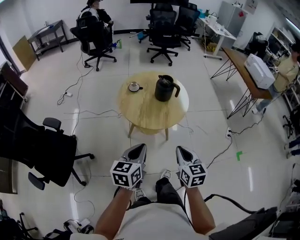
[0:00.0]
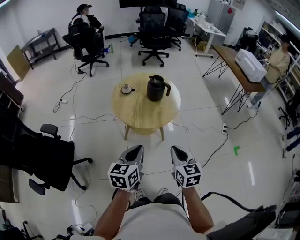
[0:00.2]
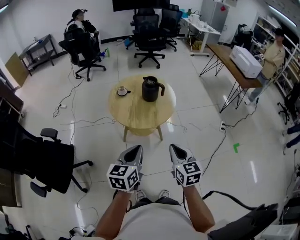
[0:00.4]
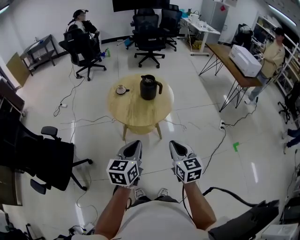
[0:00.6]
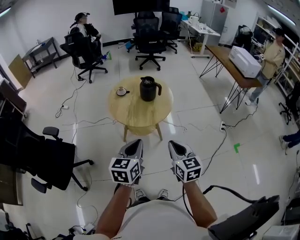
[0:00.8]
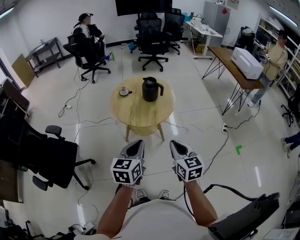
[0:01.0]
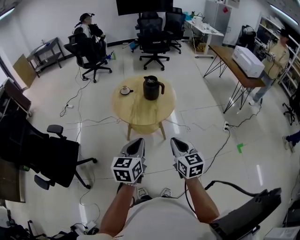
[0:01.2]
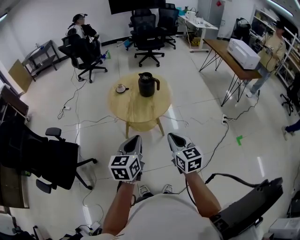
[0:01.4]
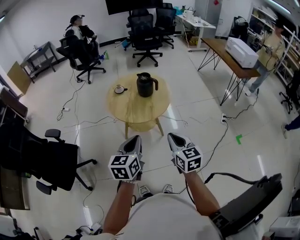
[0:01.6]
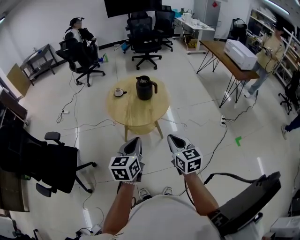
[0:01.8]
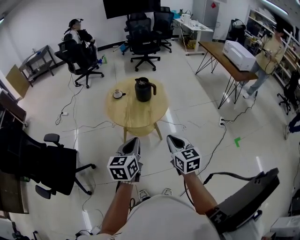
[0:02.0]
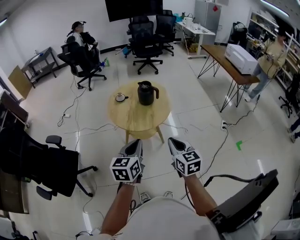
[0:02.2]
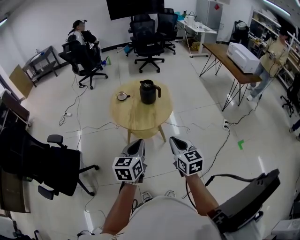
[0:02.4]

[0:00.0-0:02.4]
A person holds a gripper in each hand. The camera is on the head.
0:00.0 to 0:01.2: The right gripper heads upward, backward and to the right, covering about 10 cm. Meanwhile the left gripper shifts some 10 cm to the right, backward and upward.
0:01.2 to 0:02.4: The grippers stay close to where they were, moving slightly.

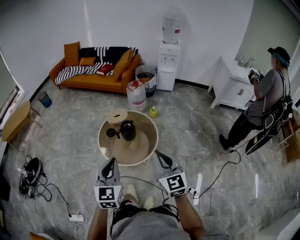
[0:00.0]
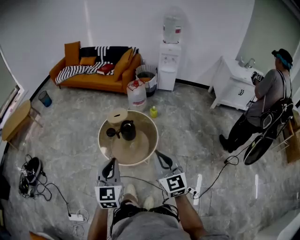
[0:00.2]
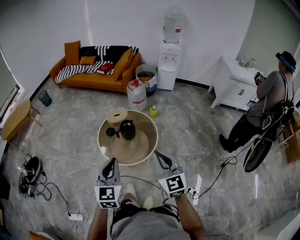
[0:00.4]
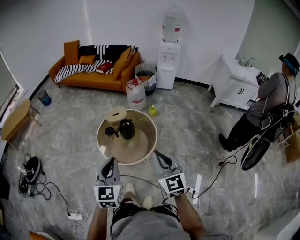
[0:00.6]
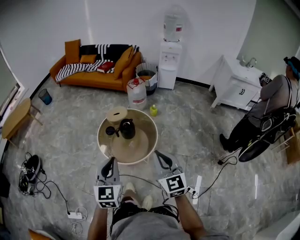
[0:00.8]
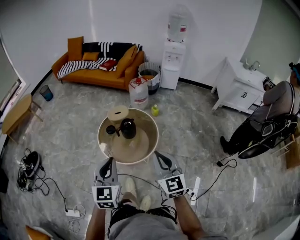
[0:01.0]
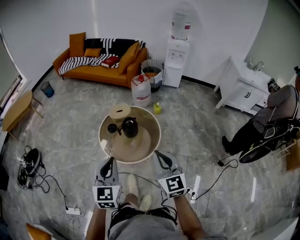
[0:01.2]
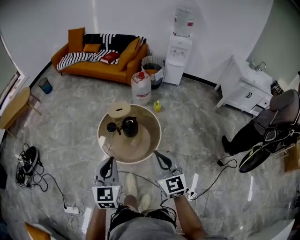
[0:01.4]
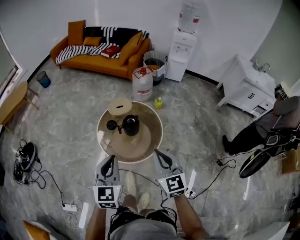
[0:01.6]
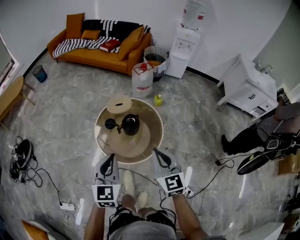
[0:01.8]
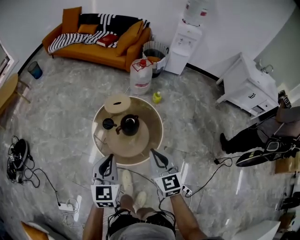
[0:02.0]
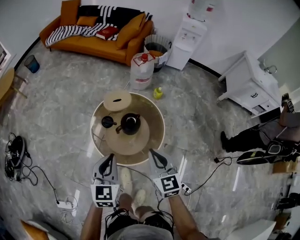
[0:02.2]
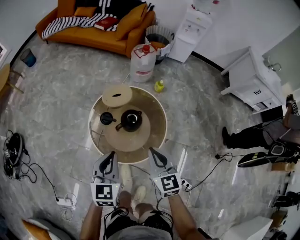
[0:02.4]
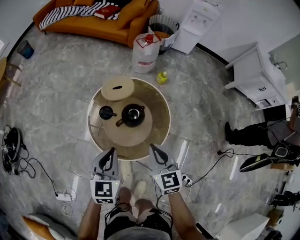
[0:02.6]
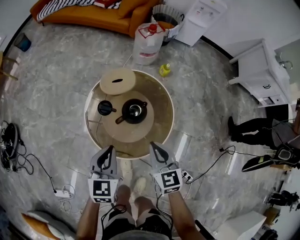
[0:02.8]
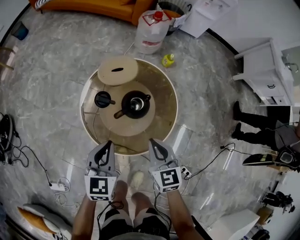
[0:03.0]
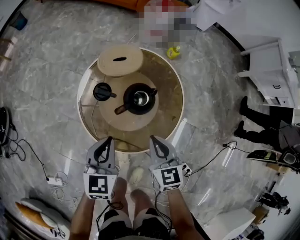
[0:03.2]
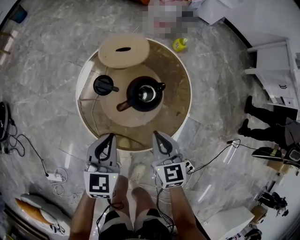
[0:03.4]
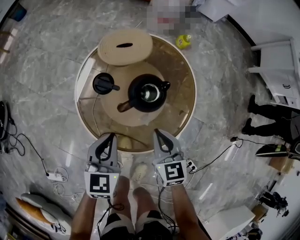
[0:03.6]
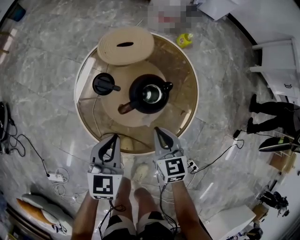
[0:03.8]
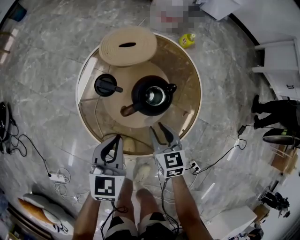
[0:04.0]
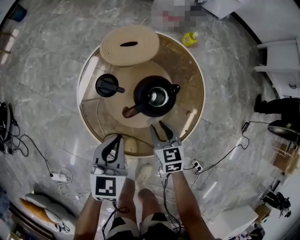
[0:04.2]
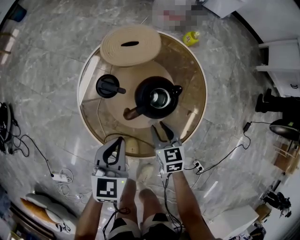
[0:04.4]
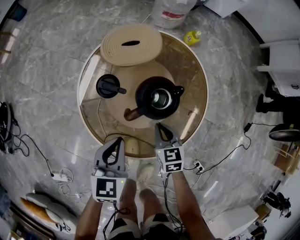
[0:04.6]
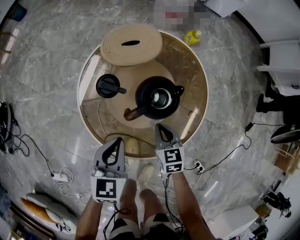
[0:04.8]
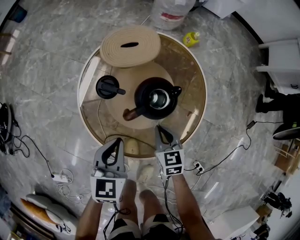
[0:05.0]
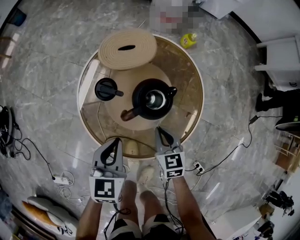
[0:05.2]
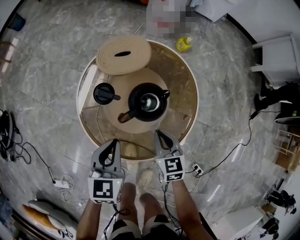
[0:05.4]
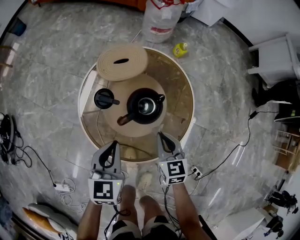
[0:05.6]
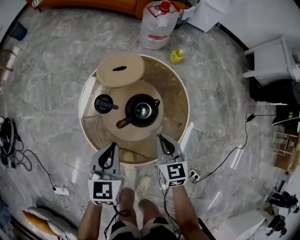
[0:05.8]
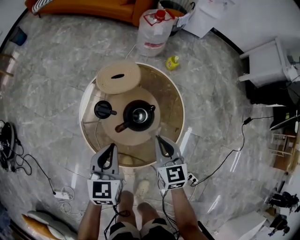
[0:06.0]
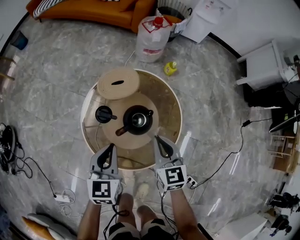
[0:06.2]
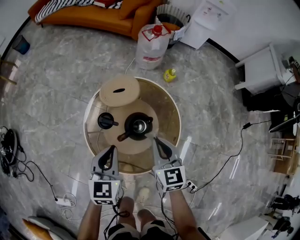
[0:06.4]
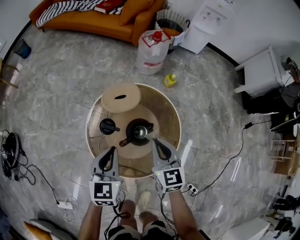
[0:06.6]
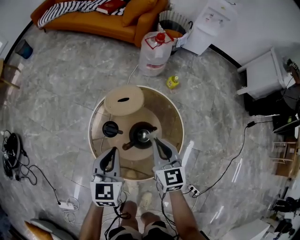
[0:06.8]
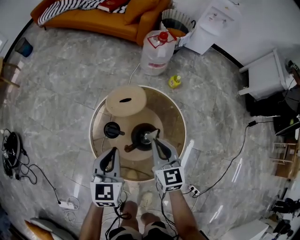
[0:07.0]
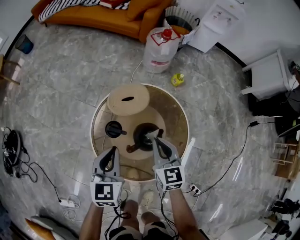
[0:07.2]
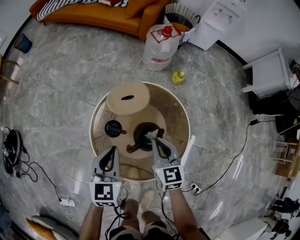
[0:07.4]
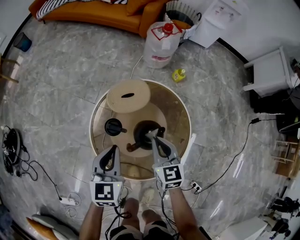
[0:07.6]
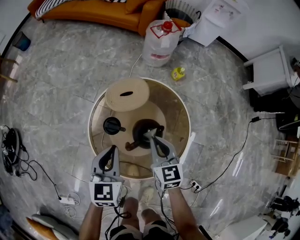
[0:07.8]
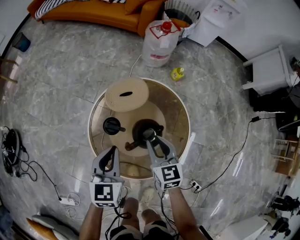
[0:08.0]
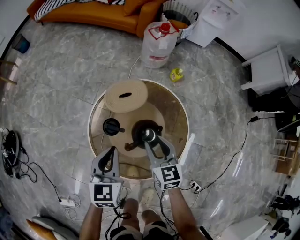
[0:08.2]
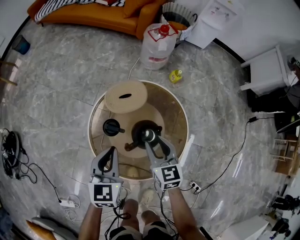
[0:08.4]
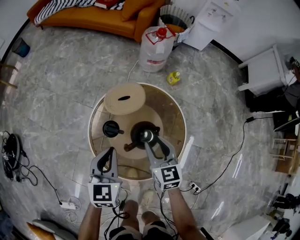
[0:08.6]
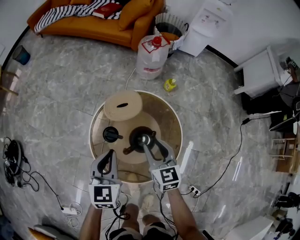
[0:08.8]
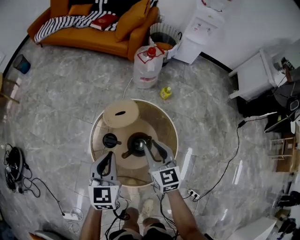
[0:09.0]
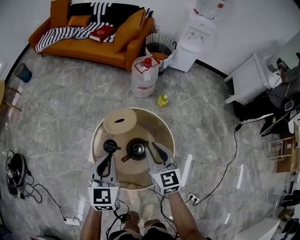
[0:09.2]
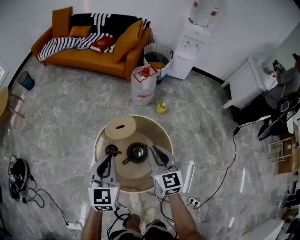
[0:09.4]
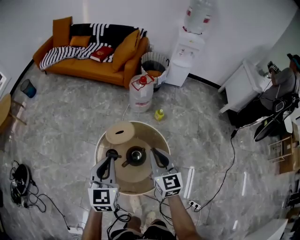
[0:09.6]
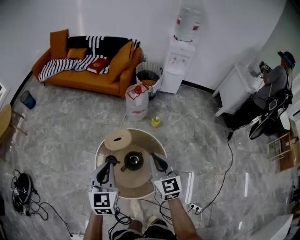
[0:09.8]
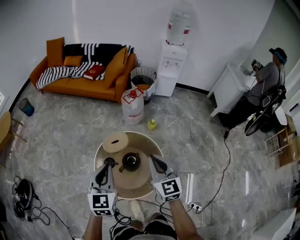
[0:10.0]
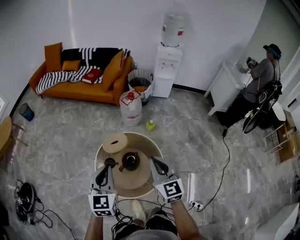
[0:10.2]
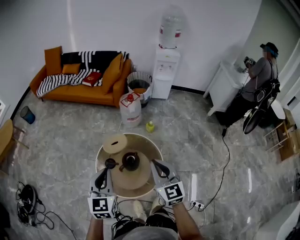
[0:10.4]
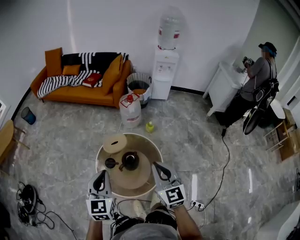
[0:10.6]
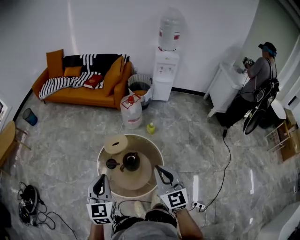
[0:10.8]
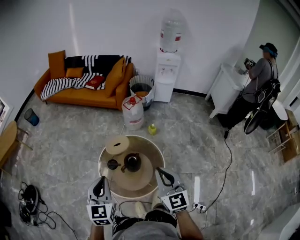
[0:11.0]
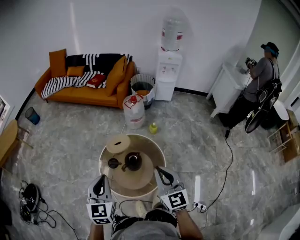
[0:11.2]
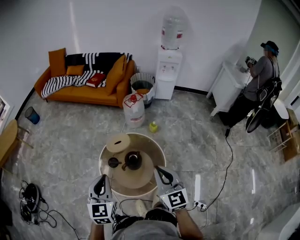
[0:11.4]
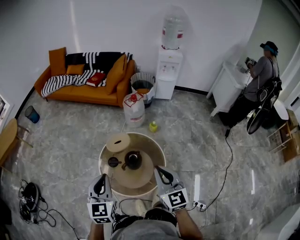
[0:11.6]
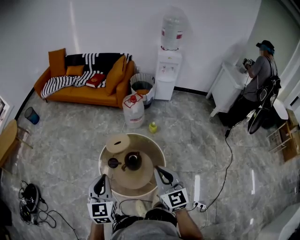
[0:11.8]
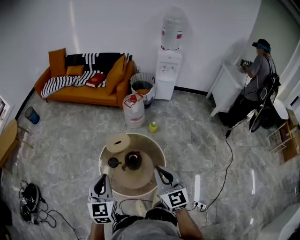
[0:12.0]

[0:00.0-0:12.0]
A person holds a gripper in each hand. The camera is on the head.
0:00.0 to 0:01.6: Both grippers travel together forward and downward, some 10 cm.
0:01.6 to 0:03.0: Both grippers travel together downward and forward, roughly 40 cm. The right gripper rotates some 20 degrees.
0:03.0 to 0:04.4: The left gripper heads downward, covering roughly 15 cm. The right gripper goes some 25 cm downward, and opens.
0:04.4 to 0:06.0: The left gripper moves upward, some 10 cm, while the right gripper moves upward, roughly 20 cm, and closes its fingers.
0:06.0 to 0:07.6: The left gripper heads forward, covering roughly 10 cm; the right gripper heads forward and to the left, covering approximately 10 cm.
0:07.6 to 0:09.0: The grippers both shift upward by about 10 cm. The right gripper opens.
0:09.0 to 0:10.4: Both grippers move upward and backward, roughly 30 cm. The right gripper closes up.
0:10.4 to 0:12.0: There are only small adjustments of the grippers.

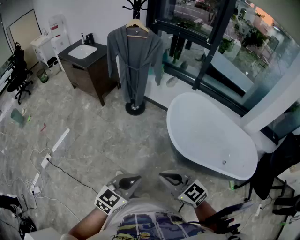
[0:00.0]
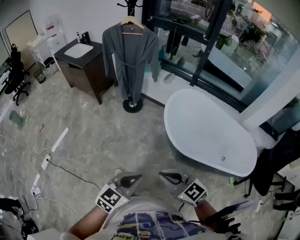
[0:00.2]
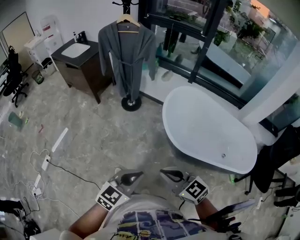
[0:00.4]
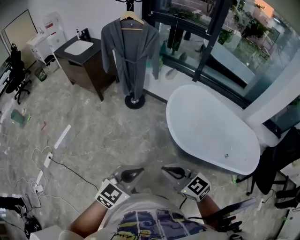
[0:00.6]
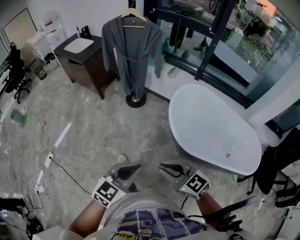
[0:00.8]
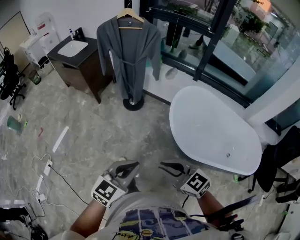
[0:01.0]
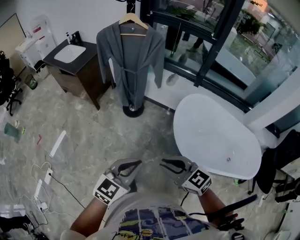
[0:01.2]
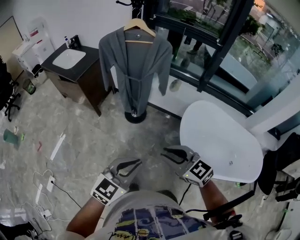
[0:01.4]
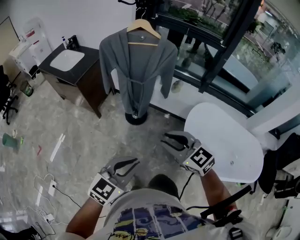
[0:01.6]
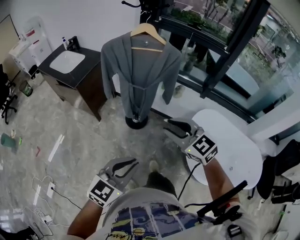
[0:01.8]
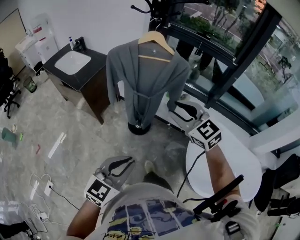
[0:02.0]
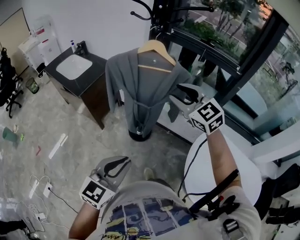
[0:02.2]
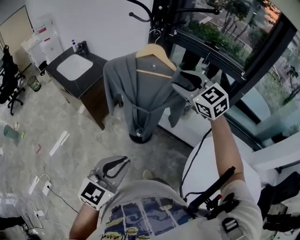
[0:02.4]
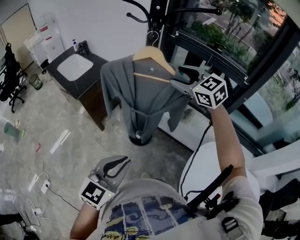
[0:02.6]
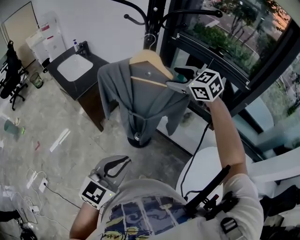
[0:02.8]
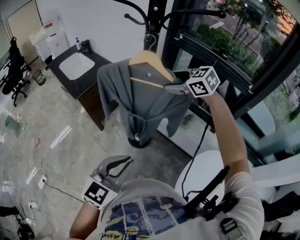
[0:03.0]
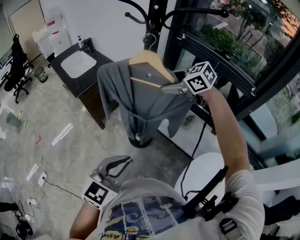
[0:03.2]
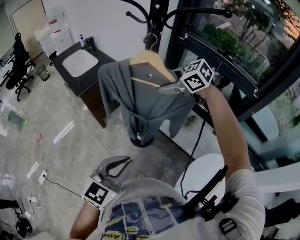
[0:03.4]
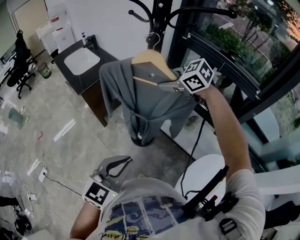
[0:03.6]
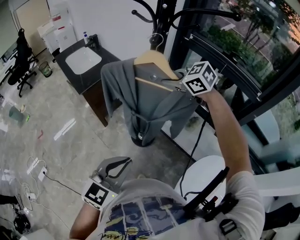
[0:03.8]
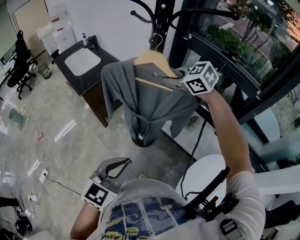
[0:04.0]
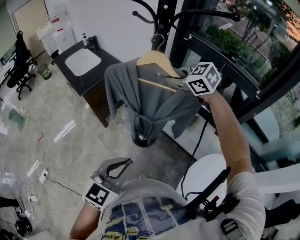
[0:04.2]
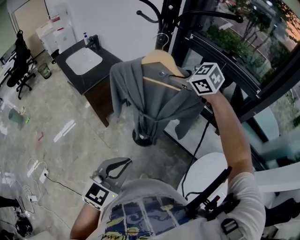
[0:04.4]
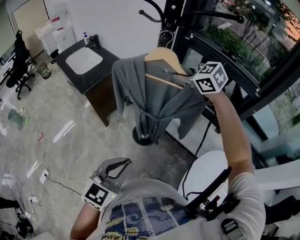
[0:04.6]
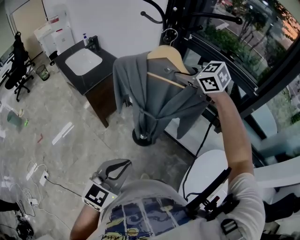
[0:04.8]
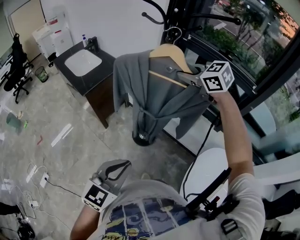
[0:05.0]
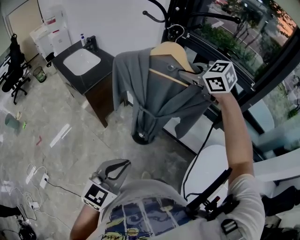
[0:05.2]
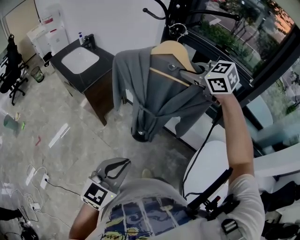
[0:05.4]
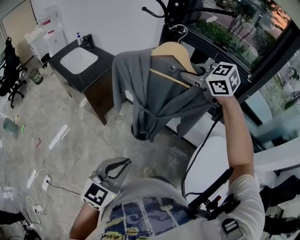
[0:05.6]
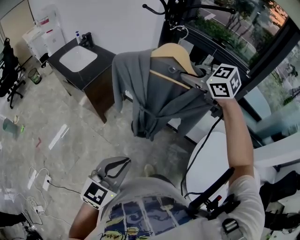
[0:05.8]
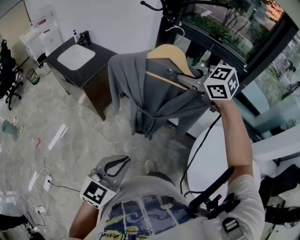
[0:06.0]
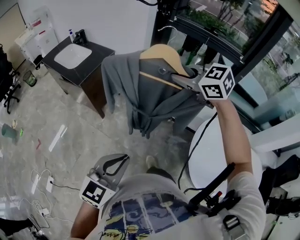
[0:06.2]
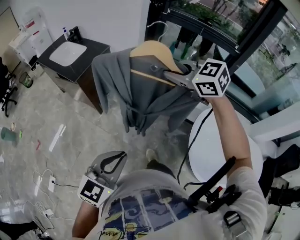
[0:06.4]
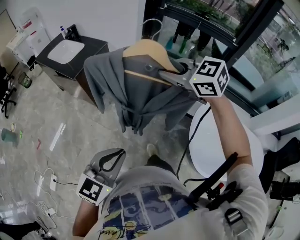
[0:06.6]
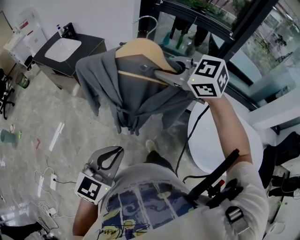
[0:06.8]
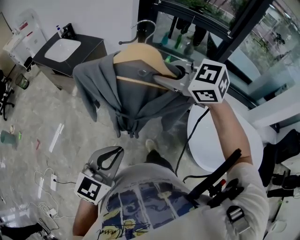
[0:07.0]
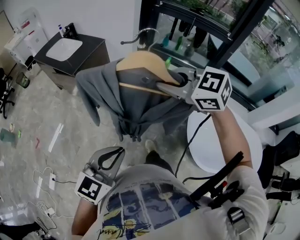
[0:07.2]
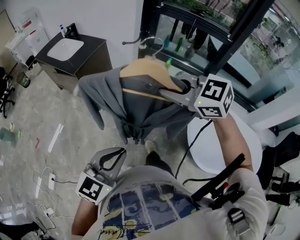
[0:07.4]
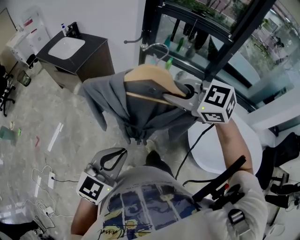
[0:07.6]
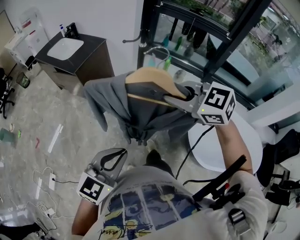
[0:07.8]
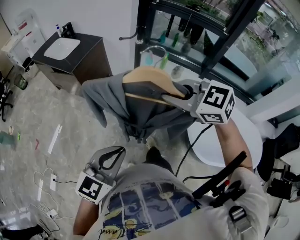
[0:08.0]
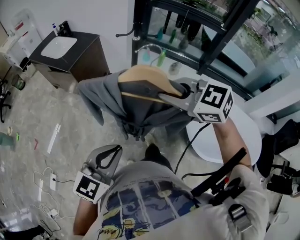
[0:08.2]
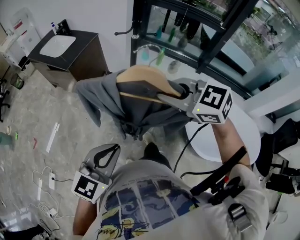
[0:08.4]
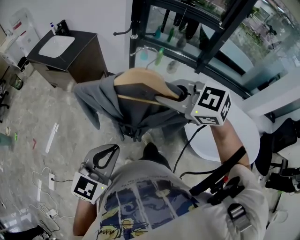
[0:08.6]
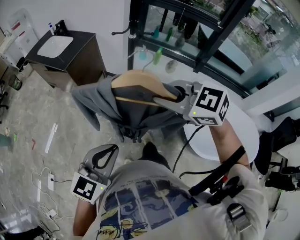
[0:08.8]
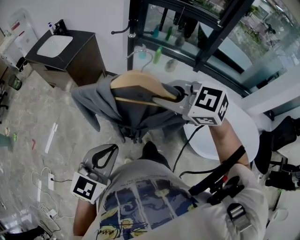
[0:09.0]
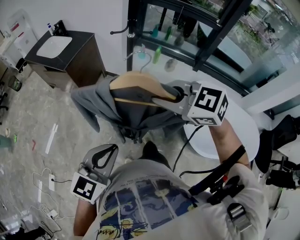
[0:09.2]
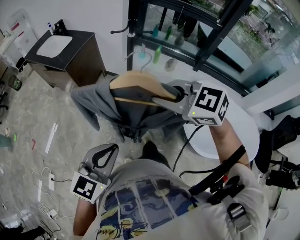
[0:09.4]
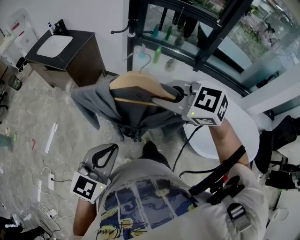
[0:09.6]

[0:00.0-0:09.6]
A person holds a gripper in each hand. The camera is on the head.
0:00.0 to 0:01.6: The left gripper goes roughly 40 cm forward and to the left. Meanwhile the right gripper shifts some 40 cm forward.
0:01.6 to 0:03.2: The right gripper moves some 50 cm, rotates some 30 degrees, and opens up. Meanwhile the left gripper ends up approximately 30 cm from where it was, and swivels about 20 degrees.
0:03.2 to 0:04.8: The left gripper moves to the left, approximately 5 cm; the right gripper moves about 5 cm, and closes up.
0:04.8 to 0:06.4: The right gripper travels backward by some 20 cm; the left gripper is displaced backward and to the left by some 15 cm.
0:06.4 to 0:08.0: The left gripper is displaced backward by about 10 cm, while the right gripper heads backward, covering approximately 20 cm.
0:08.0 to 0:09.6: There are only small adjustments of the grippers.
